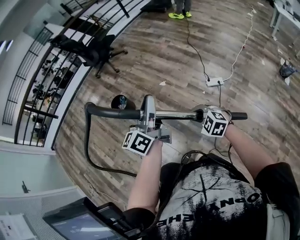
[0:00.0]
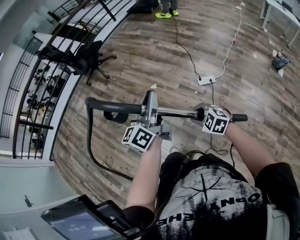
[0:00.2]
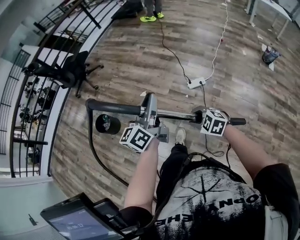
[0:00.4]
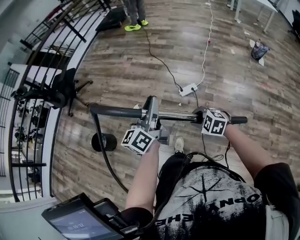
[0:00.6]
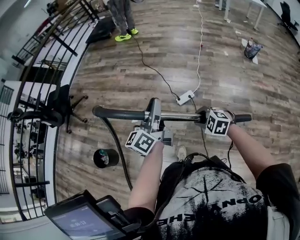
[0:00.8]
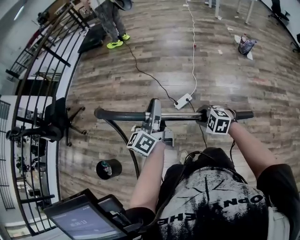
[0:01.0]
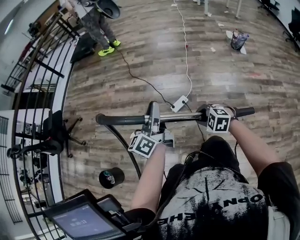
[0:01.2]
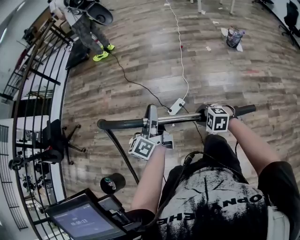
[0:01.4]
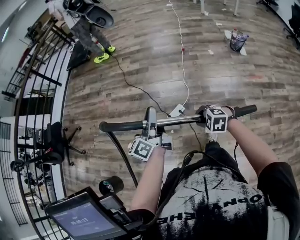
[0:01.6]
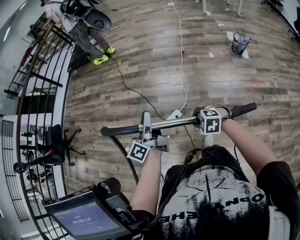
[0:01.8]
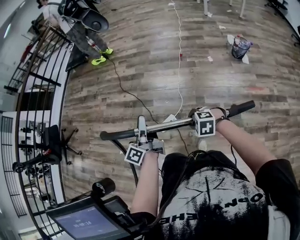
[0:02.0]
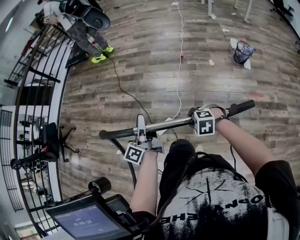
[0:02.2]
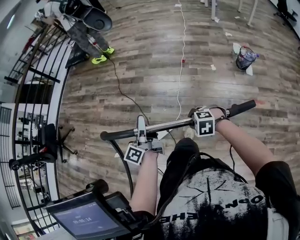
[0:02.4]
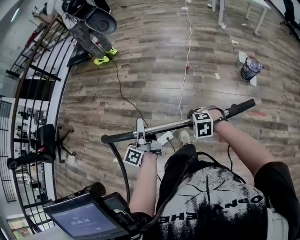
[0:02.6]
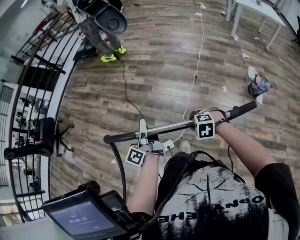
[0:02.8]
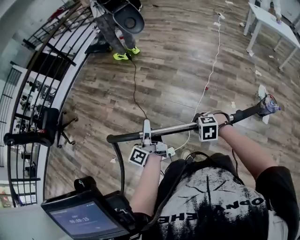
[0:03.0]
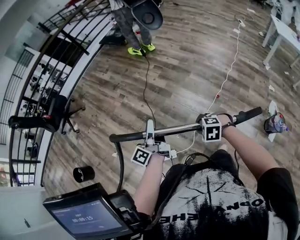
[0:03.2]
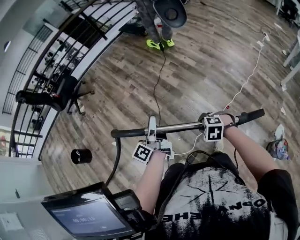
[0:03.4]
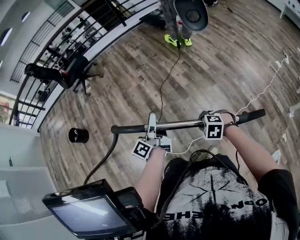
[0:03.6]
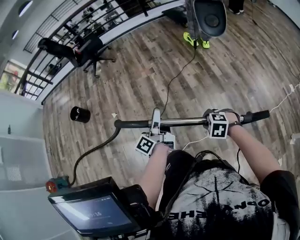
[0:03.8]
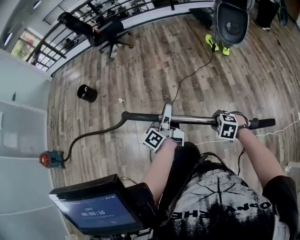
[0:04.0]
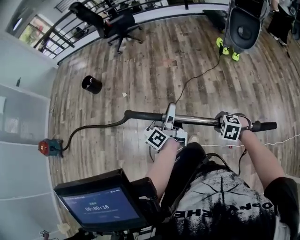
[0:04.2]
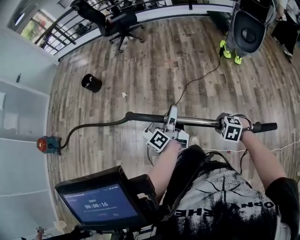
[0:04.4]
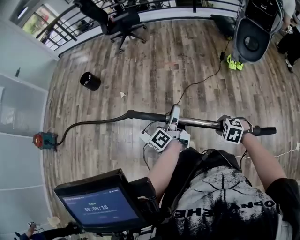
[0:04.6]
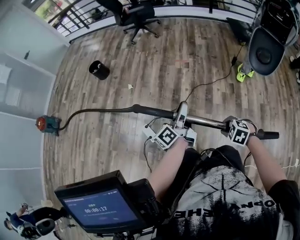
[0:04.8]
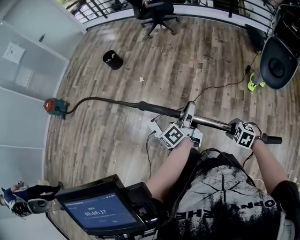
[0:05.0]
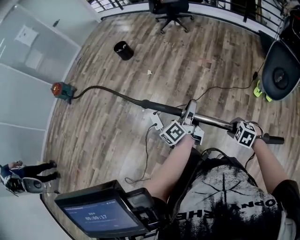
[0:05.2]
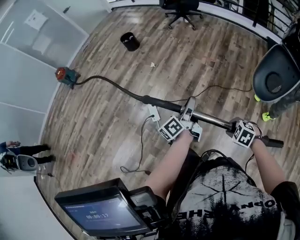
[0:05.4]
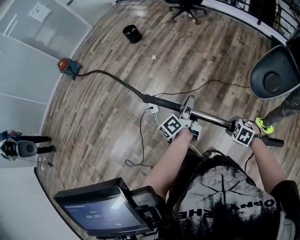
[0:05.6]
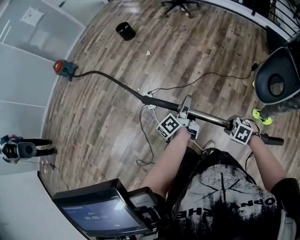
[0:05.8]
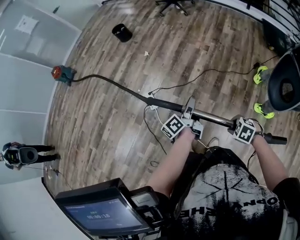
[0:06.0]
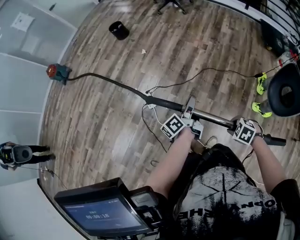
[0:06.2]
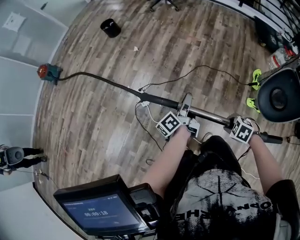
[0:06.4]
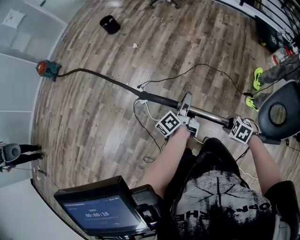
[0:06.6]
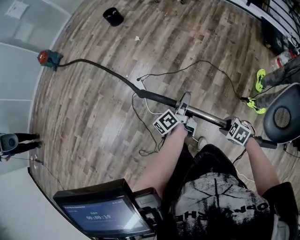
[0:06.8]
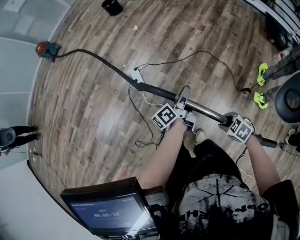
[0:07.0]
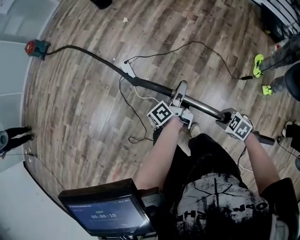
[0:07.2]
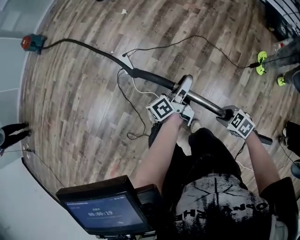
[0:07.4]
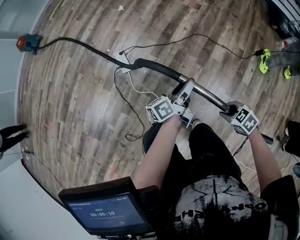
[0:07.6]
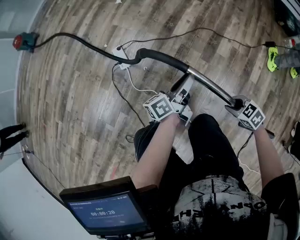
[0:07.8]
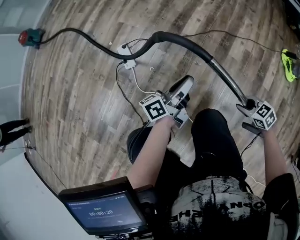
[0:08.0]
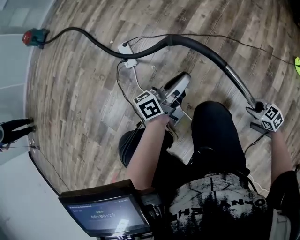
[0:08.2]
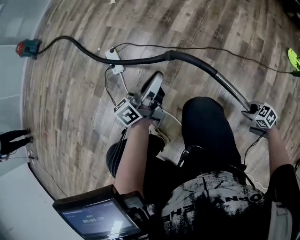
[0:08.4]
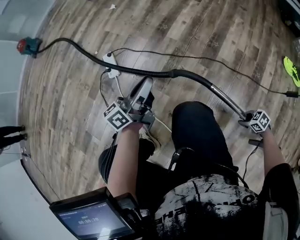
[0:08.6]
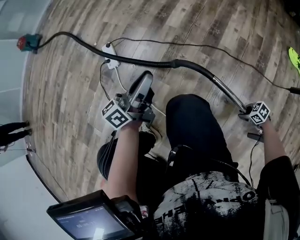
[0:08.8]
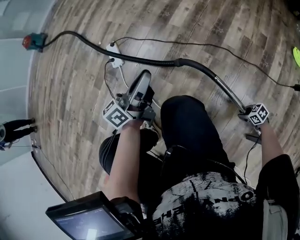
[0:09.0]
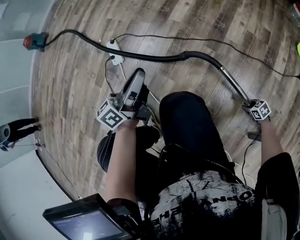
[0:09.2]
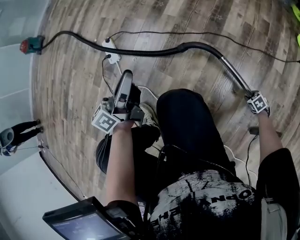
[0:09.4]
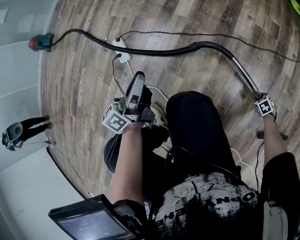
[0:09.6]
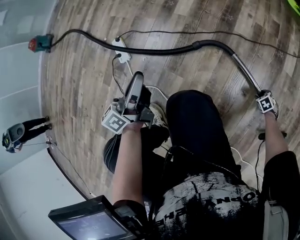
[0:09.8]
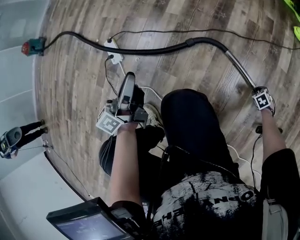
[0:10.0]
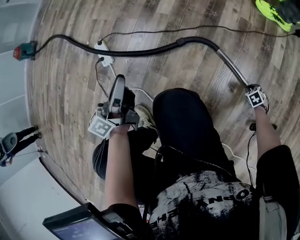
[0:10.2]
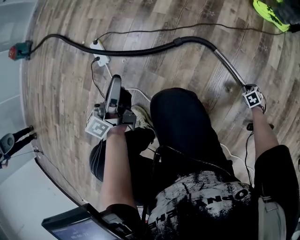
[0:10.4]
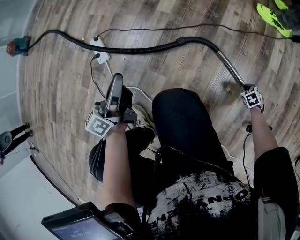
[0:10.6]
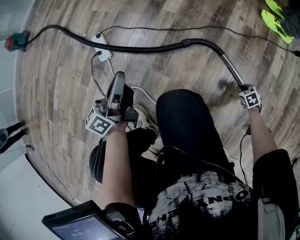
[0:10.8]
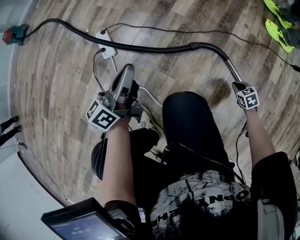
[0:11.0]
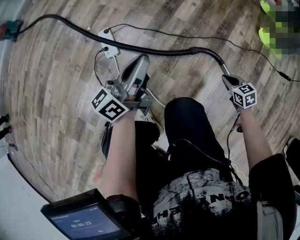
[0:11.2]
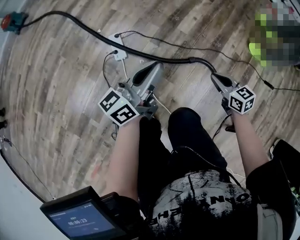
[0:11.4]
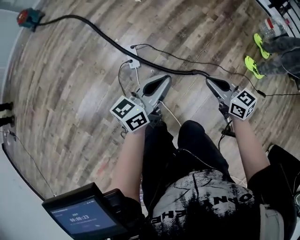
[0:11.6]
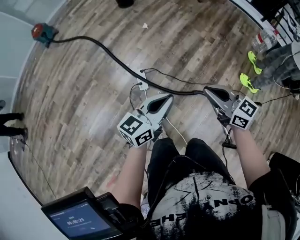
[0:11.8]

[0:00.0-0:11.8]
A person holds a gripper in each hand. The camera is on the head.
0:00.0 to 0:01.4: Both grippers are carried some 50 cm. The left gripper swivels roughly 40 degrees. Meanwhile the right gripper swivels some 30 degrees.
0:01.4 to 0:03.0: The pair of grippers is taken some 50 cm. The right gripper turns by approximately 30 degrees; the left gripper swivels some 40 degrees.
0:03.0 to 0:04.4: The left gripper changes place by some 20 cm, and swivels roughly 50 degrees, while the right gripper ends up about 35 cm from where it was, and rolls counterclockwise, seen from behind, by roughly 50 degrees.
0:04.4 to 0:06.0: The right gripper shifts by about 20 cm. Meanwhile the left gripper changes place by some 15 cm, and turns by roughly 20 degrees.
0:06.0 to 0:07.4: Both grippers move downward, approximately 15 cm. The left gripper opens up.
0:07.4 to 0:08.8: The left gripper goes approximately 25 cm downward, turns by roughly 30 degrees, and closes. Meanwhile the right gripper heads downward, covering about 50 cm.
0:08.8 to 0:10.4: The right gripper is displaced downward by about 10 cm, tips its fingers downward by roughly 30 degrees, and closes up, while the left gripper changes place by some 5 cm.
0:10.4 to 0:11.8: The left gripper travels upward by roughly 40 cm, and changes its angle by roughly 20 degrees. The right gripper is displaced upward by roughly 90 cm, and angles its fingers upward, by roughly 70 degrees.

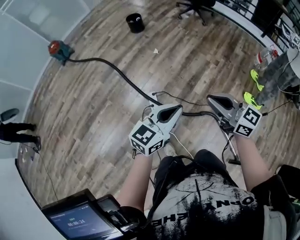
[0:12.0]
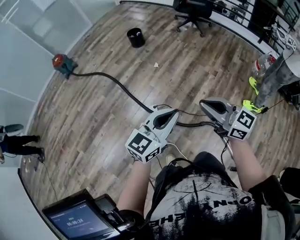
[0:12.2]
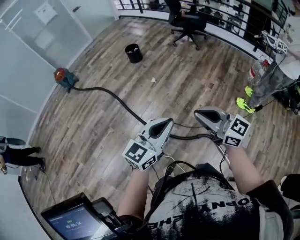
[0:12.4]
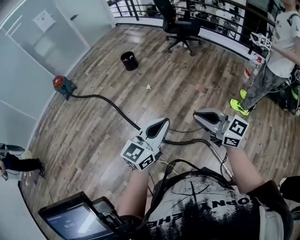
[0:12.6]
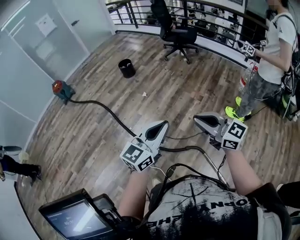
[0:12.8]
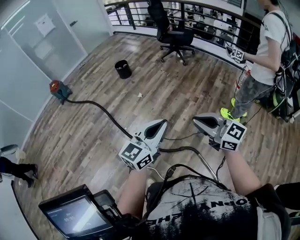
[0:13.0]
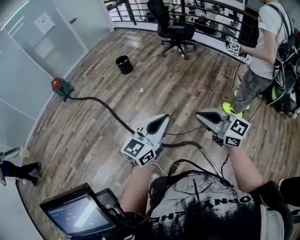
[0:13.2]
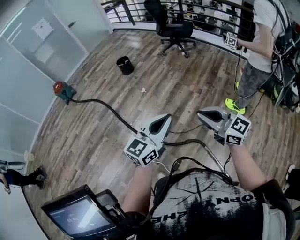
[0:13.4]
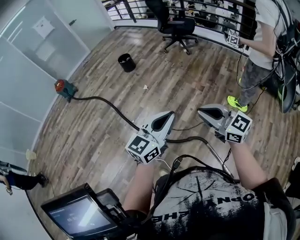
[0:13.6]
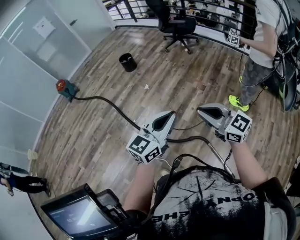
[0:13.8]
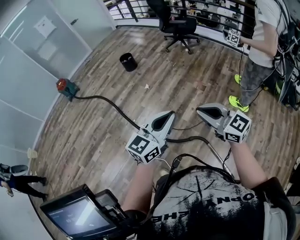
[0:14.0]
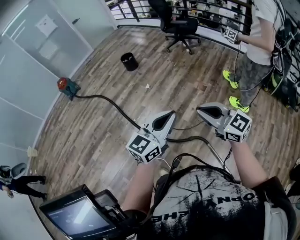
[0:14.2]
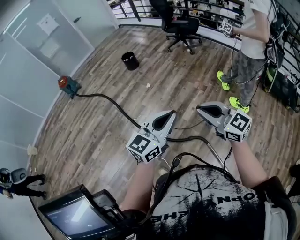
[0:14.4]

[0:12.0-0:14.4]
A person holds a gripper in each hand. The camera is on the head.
0:12.0 to 0:13.2: Both grippers move to the right and upward, about 25 cm.
0:13.2 to 0:14.4: The grippers move only a little.

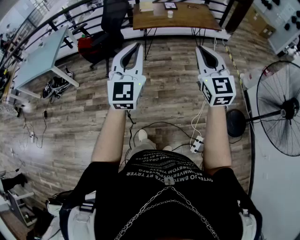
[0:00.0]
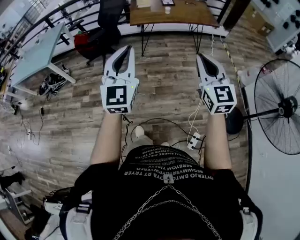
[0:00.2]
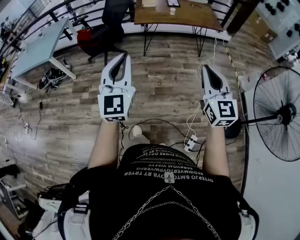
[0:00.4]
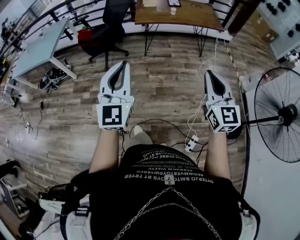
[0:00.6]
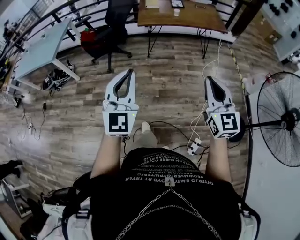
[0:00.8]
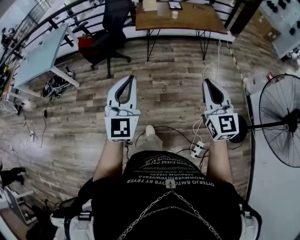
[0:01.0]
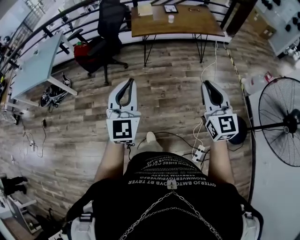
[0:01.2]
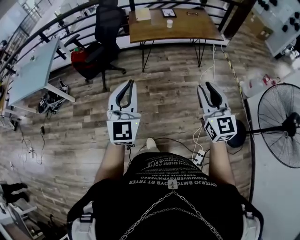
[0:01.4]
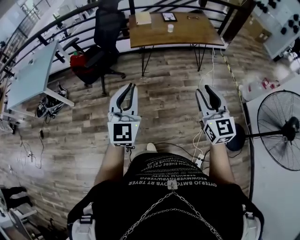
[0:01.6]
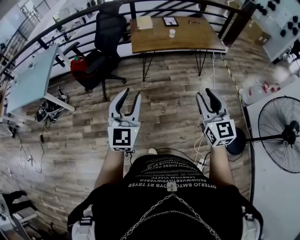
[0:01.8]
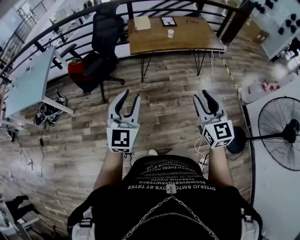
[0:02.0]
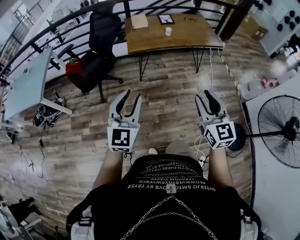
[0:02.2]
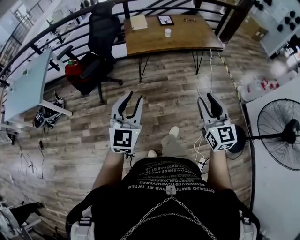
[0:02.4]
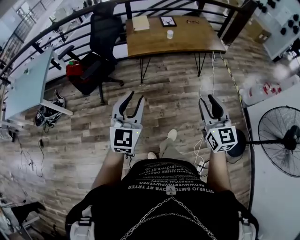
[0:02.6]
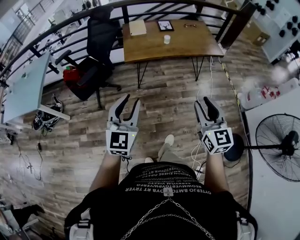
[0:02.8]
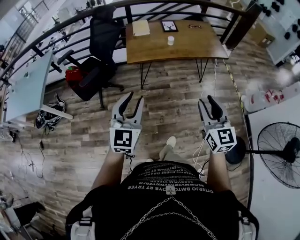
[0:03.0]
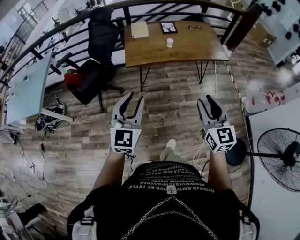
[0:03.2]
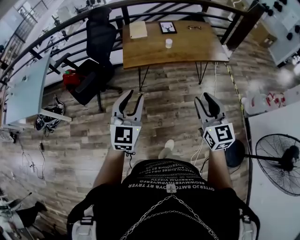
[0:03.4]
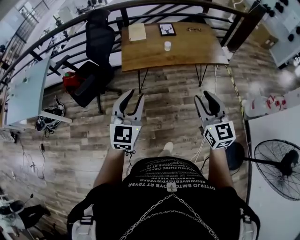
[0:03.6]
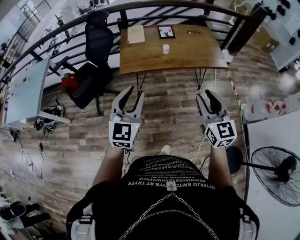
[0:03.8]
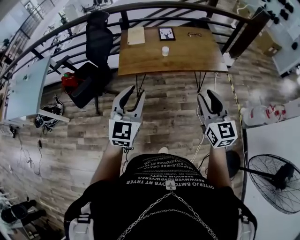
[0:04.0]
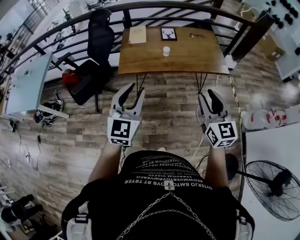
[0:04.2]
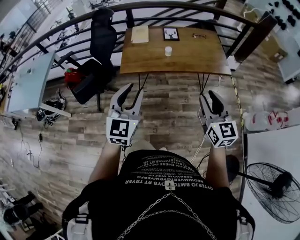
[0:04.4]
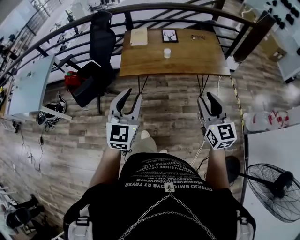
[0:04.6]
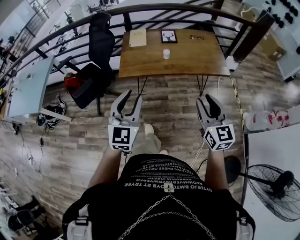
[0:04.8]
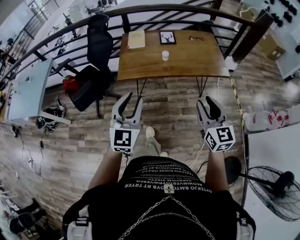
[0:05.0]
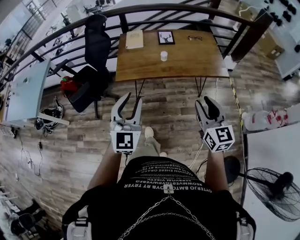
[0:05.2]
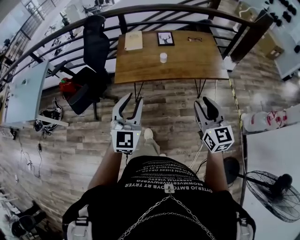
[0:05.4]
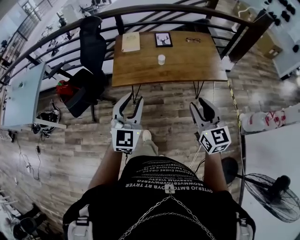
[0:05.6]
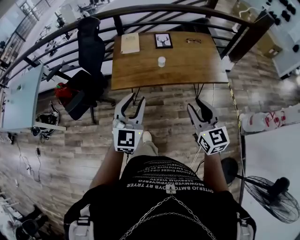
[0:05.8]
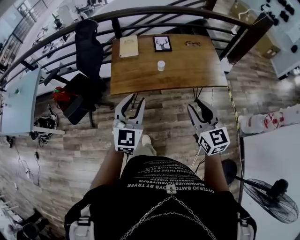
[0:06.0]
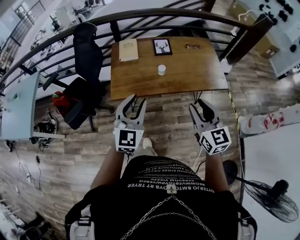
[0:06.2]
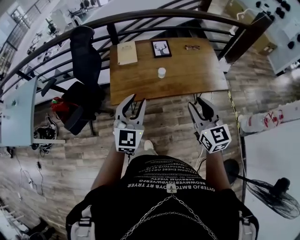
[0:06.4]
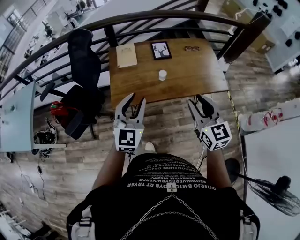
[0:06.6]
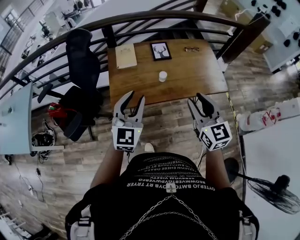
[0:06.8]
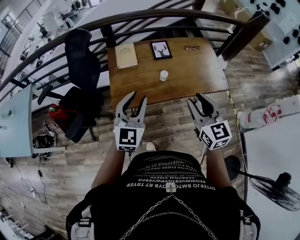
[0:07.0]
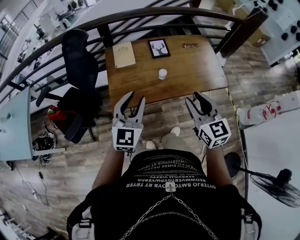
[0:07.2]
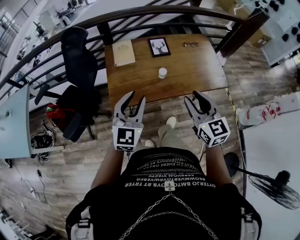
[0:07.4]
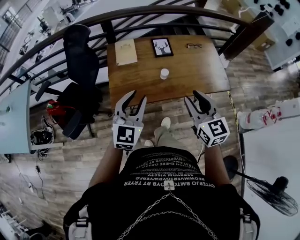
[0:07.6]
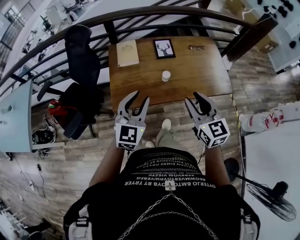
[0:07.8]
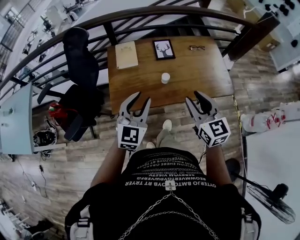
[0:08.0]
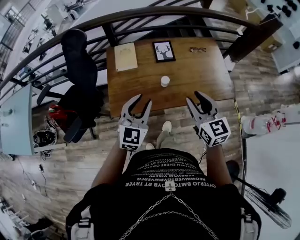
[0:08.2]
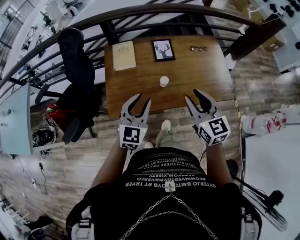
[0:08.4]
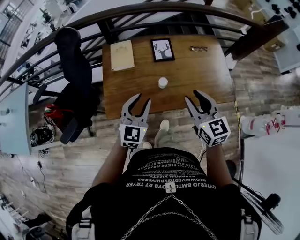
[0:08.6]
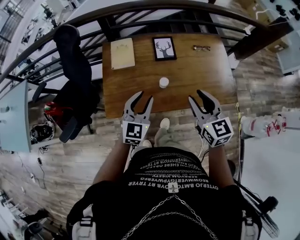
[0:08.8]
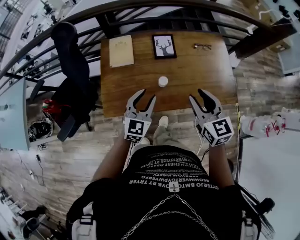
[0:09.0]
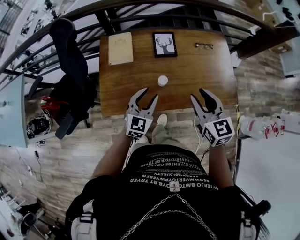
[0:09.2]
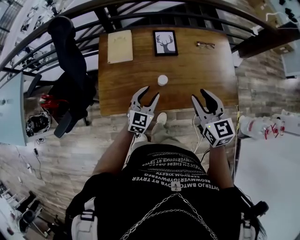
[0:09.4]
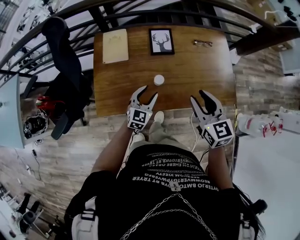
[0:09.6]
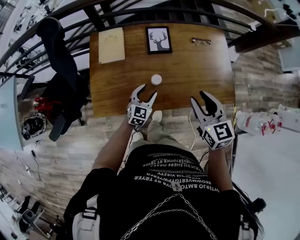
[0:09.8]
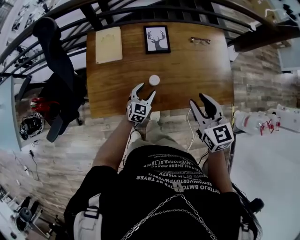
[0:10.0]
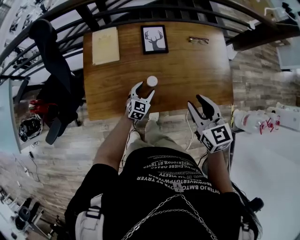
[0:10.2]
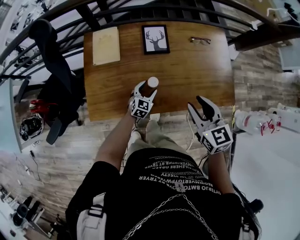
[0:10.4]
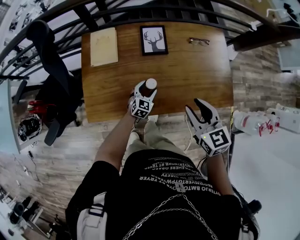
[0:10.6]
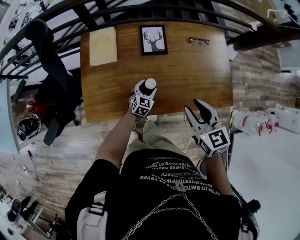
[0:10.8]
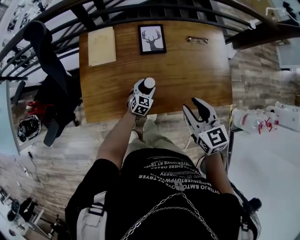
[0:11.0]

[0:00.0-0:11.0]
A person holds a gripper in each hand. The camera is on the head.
0:00.0 to 0:01.6: The left gripper travels forward, to the left and downward by some 20 cm. The right gripper goes some 15 cm forward and downward, and opens up.
0:01.6 to 0:03.2: The two grippers go some 20 cm forward. The left gripper opens up.
0:03.2 to 0:04.8: The left gripper moves to the right and forward, roughly 15 cm. The right gripper travels forward and to the right by about 15 cm.
0:04.8 to 0:06.2: Both grippers move forward, approximately 15 cm.
0:06.2 to 0:07.8: The right gripper goes approximately 15 cm forward and to the left, while the left gripper travels forward by roughly 10 cm.
0:07.8 to 0:09.4: The left gripper travels downward, forward and to the right by roughly 25 cm. Meanwhile the right gripper moves forward, to the right and downward, some 20 cm.
0:09.4 to 0:11.0: The right gripper heads downward, covering roughly 5 cm; the left gripper moves downward and forward, roughly 20 cm.
